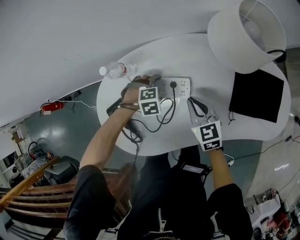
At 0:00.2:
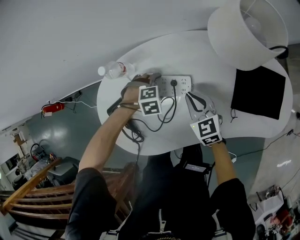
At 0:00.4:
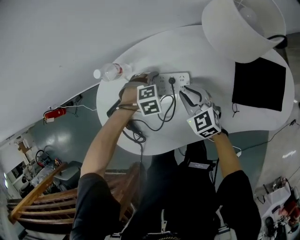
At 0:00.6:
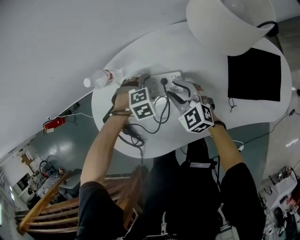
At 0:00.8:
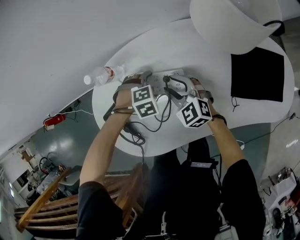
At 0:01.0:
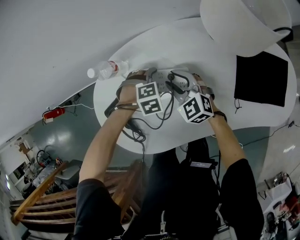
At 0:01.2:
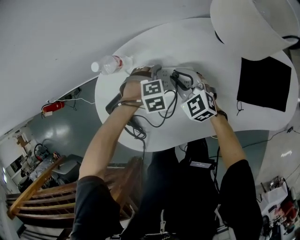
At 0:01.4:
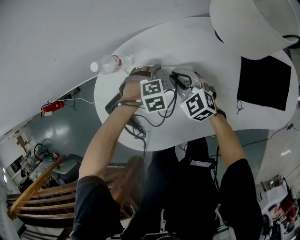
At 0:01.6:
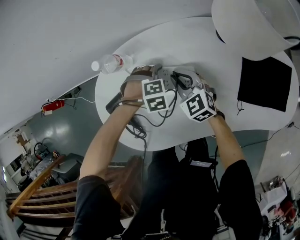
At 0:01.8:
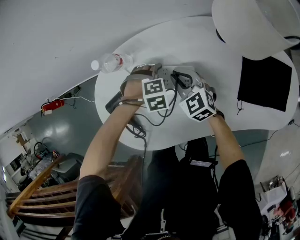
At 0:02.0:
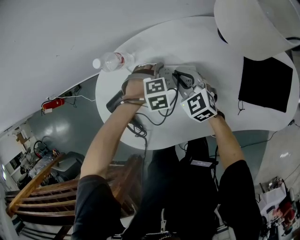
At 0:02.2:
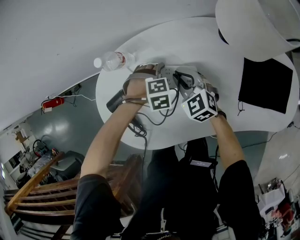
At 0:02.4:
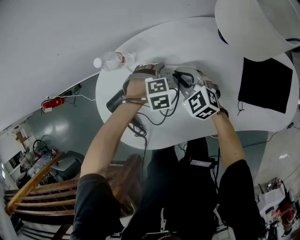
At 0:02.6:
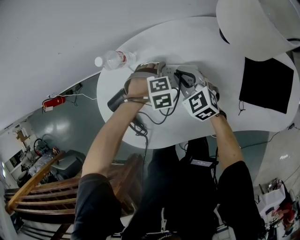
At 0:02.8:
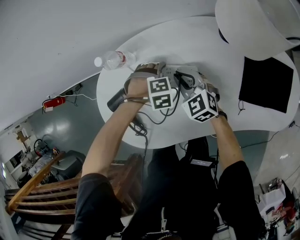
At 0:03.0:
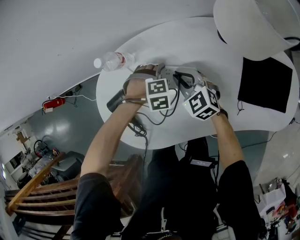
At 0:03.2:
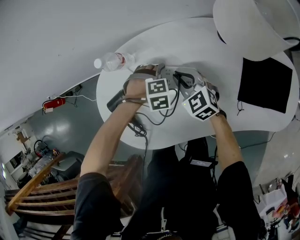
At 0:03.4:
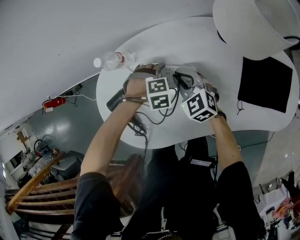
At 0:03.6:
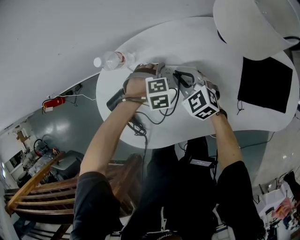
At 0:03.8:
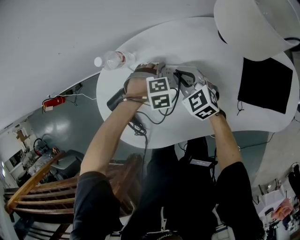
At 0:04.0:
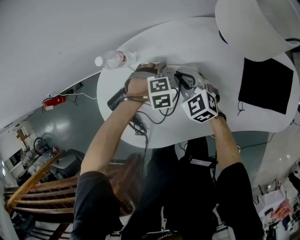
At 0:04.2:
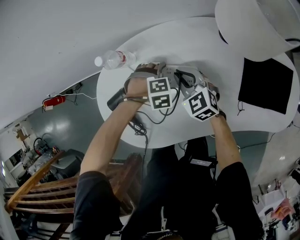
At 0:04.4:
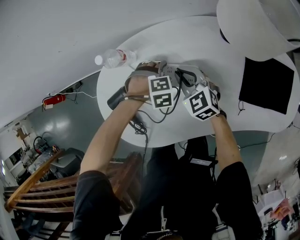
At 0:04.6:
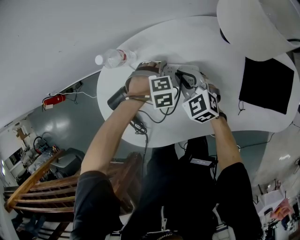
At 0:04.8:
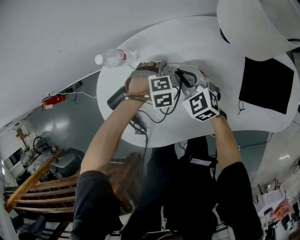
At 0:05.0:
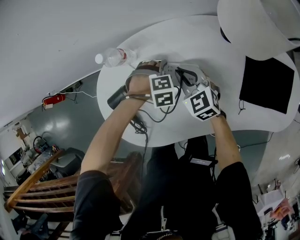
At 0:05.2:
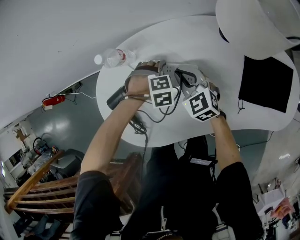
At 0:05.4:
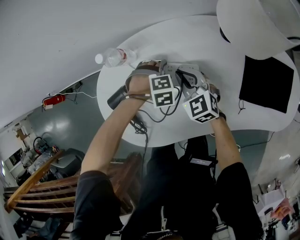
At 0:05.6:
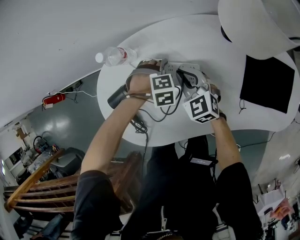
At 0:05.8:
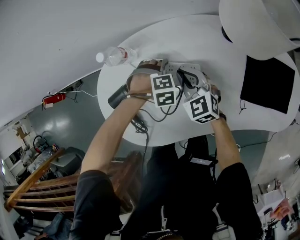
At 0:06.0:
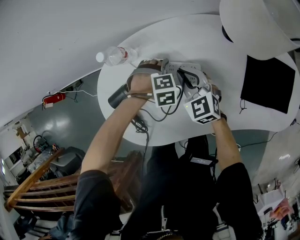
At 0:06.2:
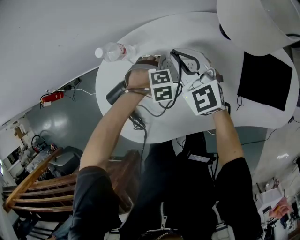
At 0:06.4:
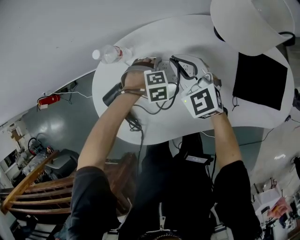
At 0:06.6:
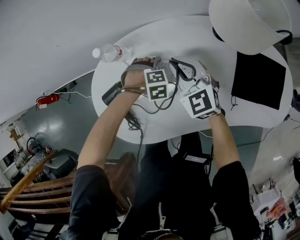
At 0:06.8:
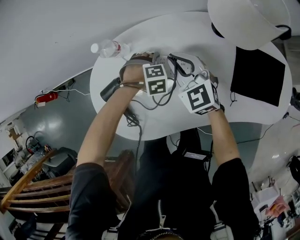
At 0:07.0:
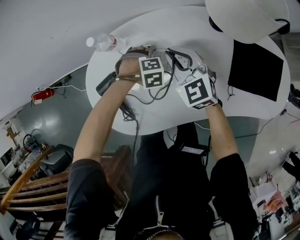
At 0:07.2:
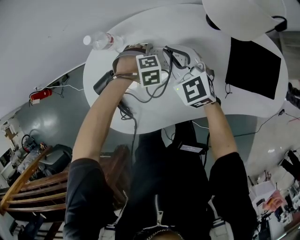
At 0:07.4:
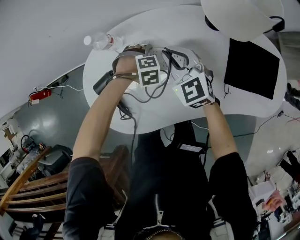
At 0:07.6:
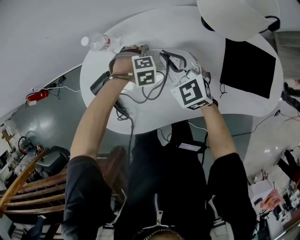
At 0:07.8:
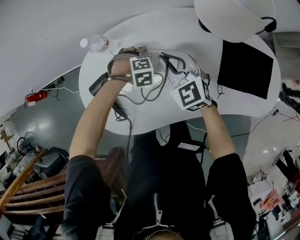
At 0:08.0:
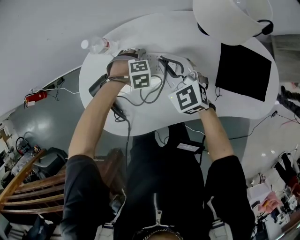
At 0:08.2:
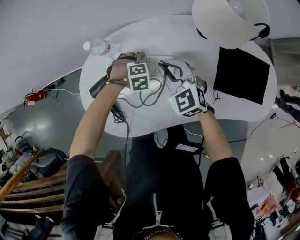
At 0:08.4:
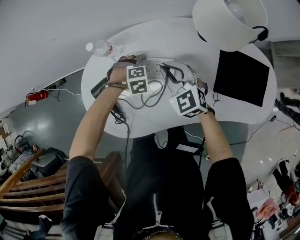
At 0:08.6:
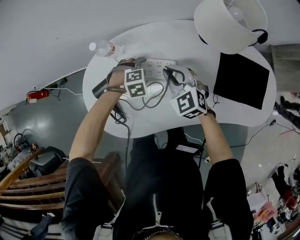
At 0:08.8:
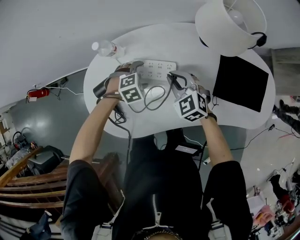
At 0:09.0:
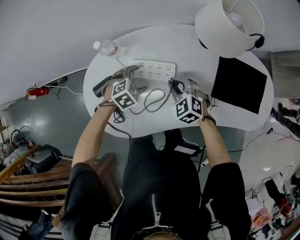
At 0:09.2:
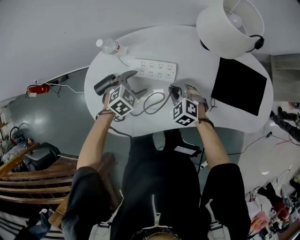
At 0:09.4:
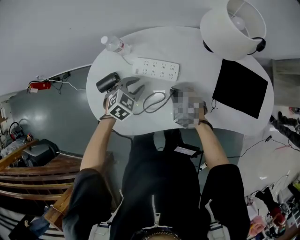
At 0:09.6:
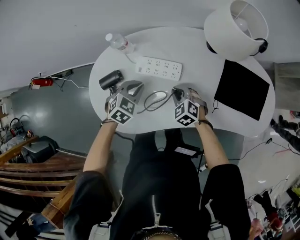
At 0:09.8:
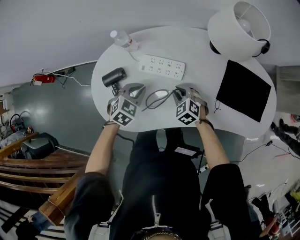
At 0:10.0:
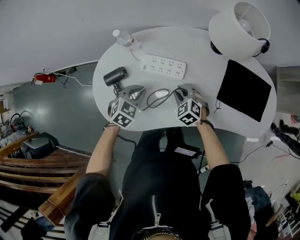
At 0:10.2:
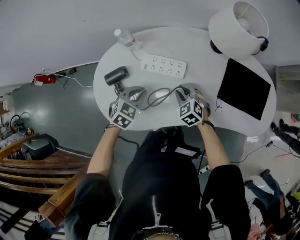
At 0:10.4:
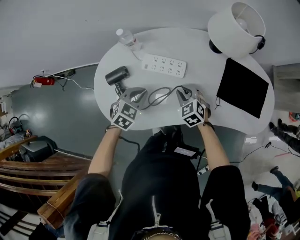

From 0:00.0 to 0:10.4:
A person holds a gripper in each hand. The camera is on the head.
From 0:00.0 to 0:01.4: The right gripper ends up about 10 cm from where it was, swivels approximately 20 degrees, and opens, then closes again.
From 0:01.4 to 0:04.4: Neither gripper changes place.
From 0:04.4 to 0:06.0: The grippers stay close to where they were, moving slightly.
From 0:06.0 to 0:07.4: The right gripper heads upward, covering roughly 5 cm.
From 0:07.4 to 0:09.0: The right gripper ends up approximately 10 cm from where it was, and changes its angle by roughly 20 degrees, while the left gripper moves upward, roughly 5 cm, and rotates some 30 degrees.
From 0:09.0 to 0:10.4: The left gripper moves backward and upward, some 10 cm, turns by some 30 degrees, and closes its fingers; the right gripper travels backward by about 5 cm.

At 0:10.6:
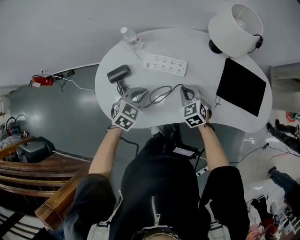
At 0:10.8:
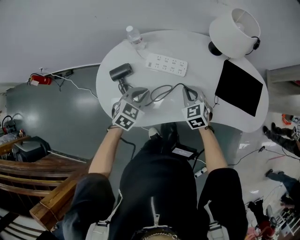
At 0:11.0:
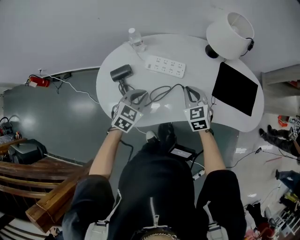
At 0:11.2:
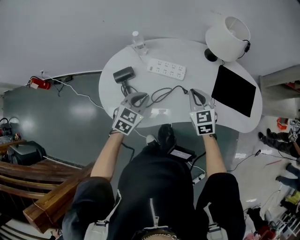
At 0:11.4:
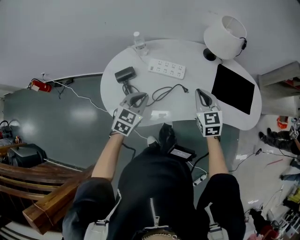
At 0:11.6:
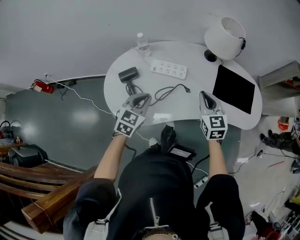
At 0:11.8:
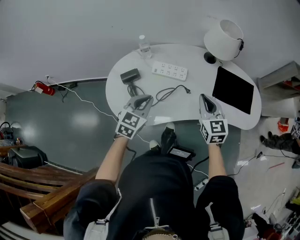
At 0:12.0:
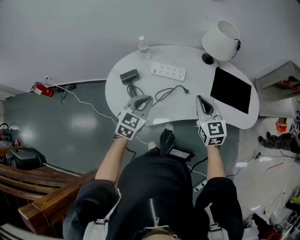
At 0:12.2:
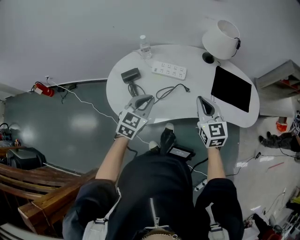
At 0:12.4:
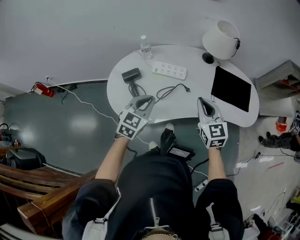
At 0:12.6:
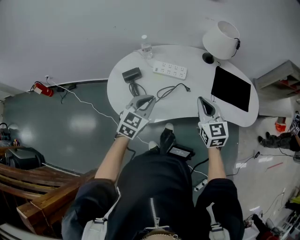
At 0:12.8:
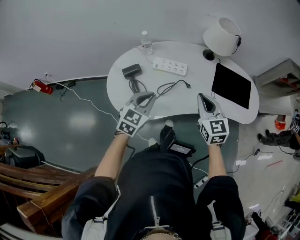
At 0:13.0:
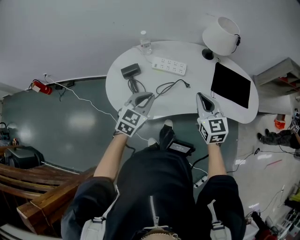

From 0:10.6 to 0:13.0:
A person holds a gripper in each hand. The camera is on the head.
From 0:10.6 to 0:11.8: The left gripper heads upward and backward, covering about 15 cm, and turns by some 20 degrees; the right gripper is displaced upward and backward by approximately 20 cm, and swivels approximately 30 degrees.
From 0:11.8 to 0:13.0: The right gripper ends up about 5 cm from where it was.

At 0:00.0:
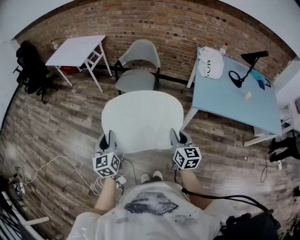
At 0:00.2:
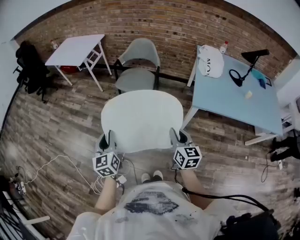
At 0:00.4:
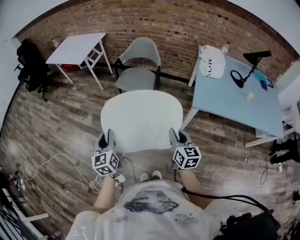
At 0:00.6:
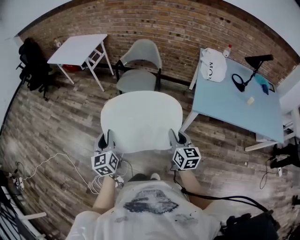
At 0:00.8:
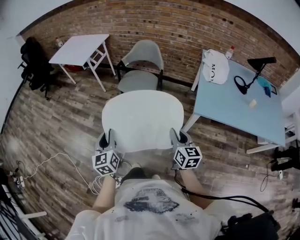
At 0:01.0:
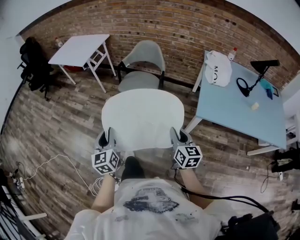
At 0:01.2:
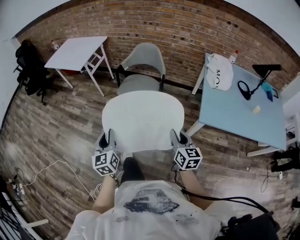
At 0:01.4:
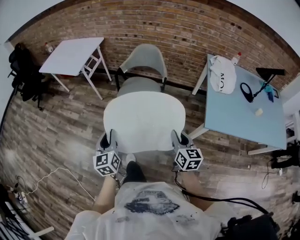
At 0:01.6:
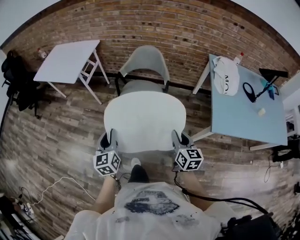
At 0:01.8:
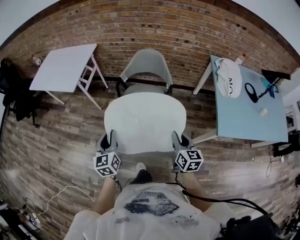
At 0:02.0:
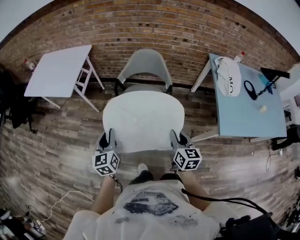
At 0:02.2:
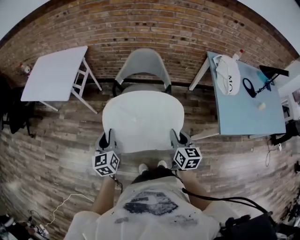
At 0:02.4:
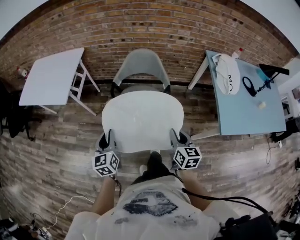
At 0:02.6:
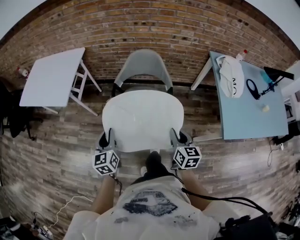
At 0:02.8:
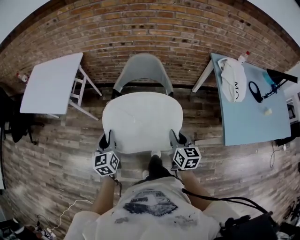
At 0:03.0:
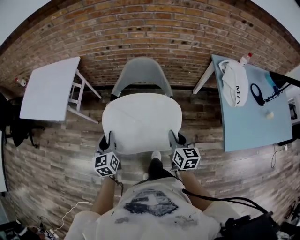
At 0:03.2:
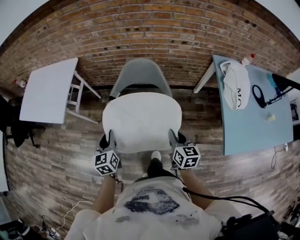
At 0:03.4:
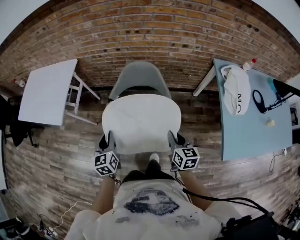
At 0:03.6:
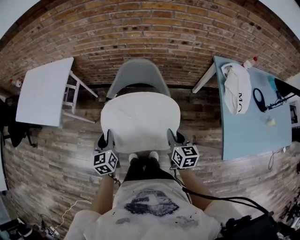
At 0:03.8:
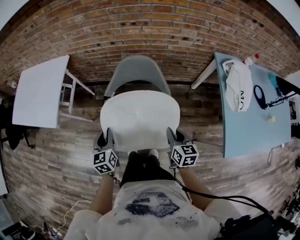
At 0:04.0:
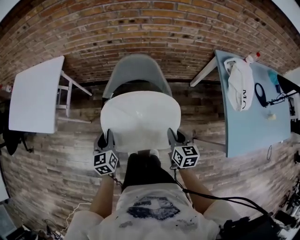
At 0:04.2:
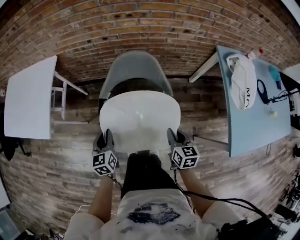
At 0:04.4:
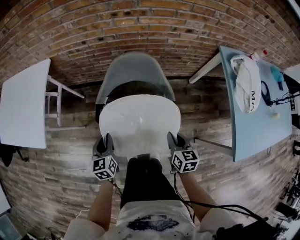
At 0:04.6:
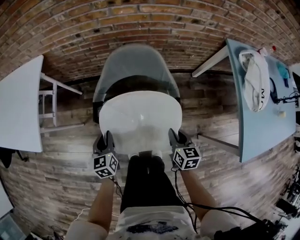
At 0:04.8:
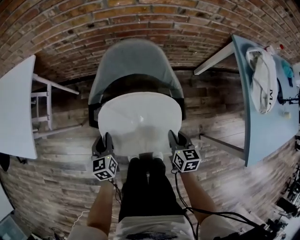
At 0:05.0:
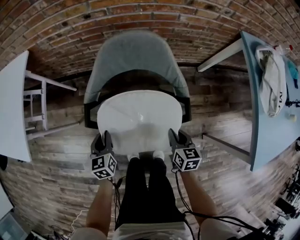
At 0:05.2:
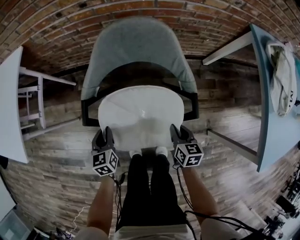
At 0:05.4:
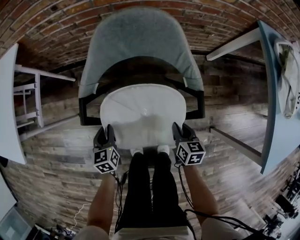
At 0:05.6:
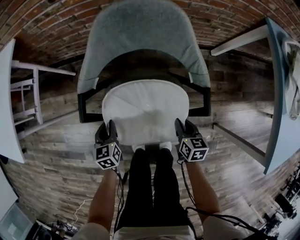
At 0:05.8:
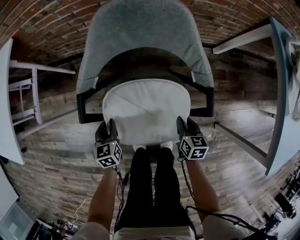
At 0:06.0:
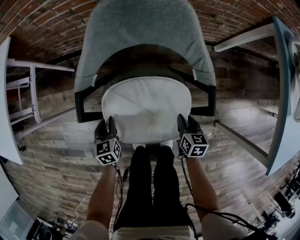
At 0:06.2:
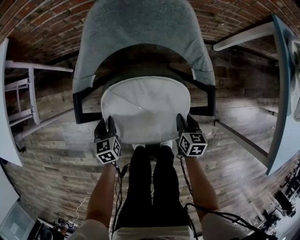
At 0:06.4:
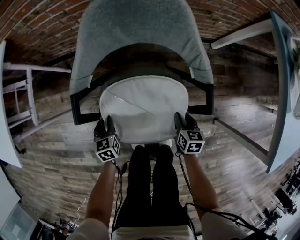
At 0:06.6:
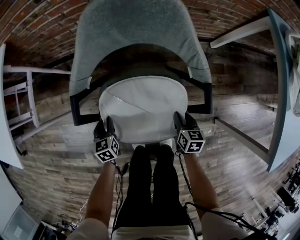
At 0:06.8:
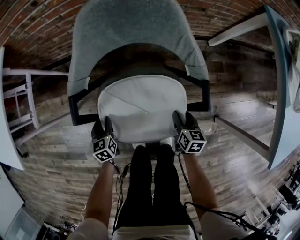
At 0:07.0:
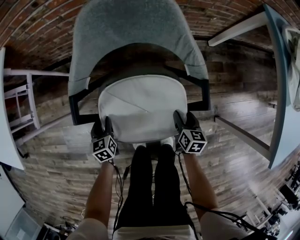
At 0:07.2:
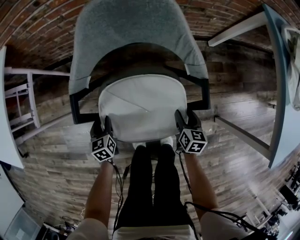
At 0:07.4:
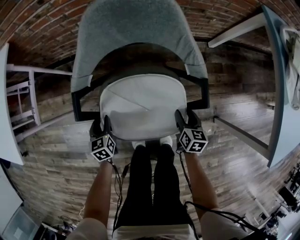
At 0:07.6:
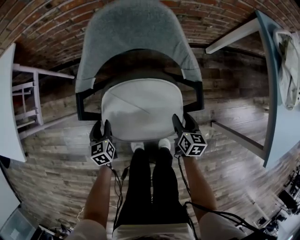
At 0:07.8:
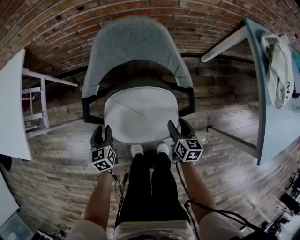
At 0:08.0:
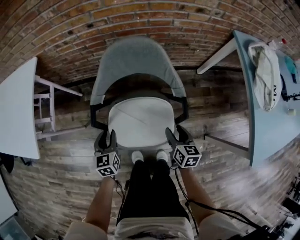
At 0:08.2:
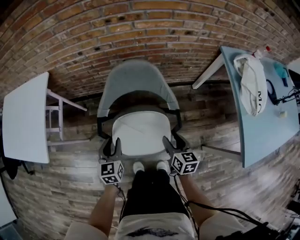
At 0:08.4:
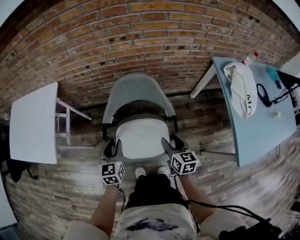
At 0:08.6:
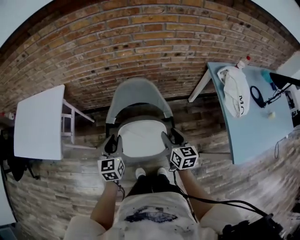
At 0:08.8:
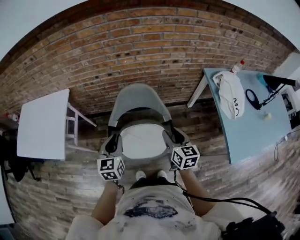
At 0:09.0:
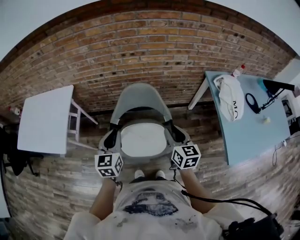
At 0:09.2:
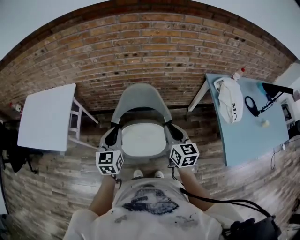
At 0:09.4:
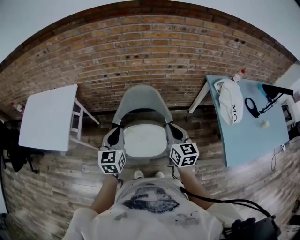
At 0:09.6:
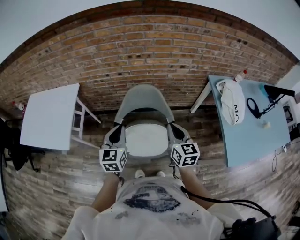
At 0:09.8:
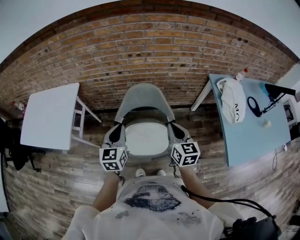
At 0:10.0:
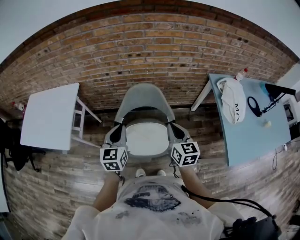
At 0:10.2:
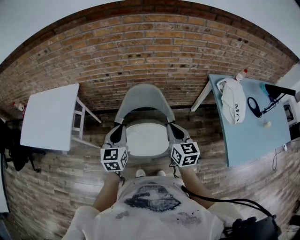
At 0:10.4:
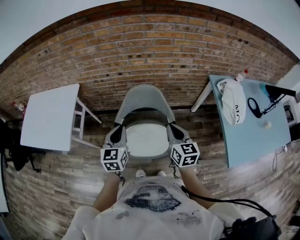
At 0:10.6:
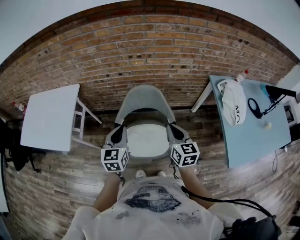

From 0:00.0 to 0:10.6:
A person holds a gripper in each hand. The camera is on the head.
From 0:00.0 to 0:01.6: Both grippers travel together forward, about 30 cm.
From 0:01.6 to 0:03.0: The grippers both shift forward by approximately 30 cm.
From 0:03.0 to 0:04.6: Both grippers move downward and forward, about 30 cm.
From 0:04.6 to 0:06.0: Both grippers travel together downward, about 25 cm.
From 0:06.0 to 0:07.6: The right gripper opens.
From 0:07.6 to 0:09.0: Both grippers travel together upward, about 50 cm. The left gripper rotates some 30 degrees, and closes, while the right gripper rotates roughly 30 degrees, and closes its fingers.
From 0:09.0 to 0:10.6: The right gripper closes up.
